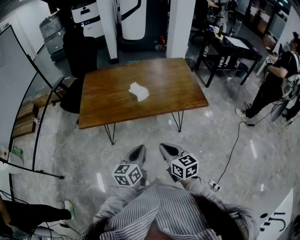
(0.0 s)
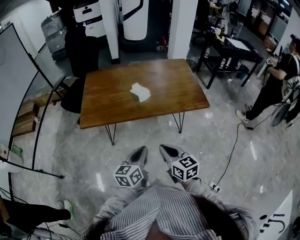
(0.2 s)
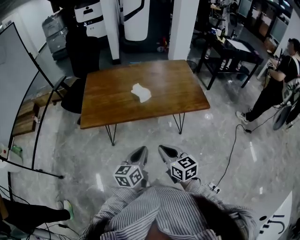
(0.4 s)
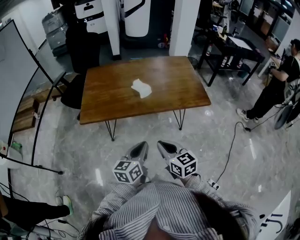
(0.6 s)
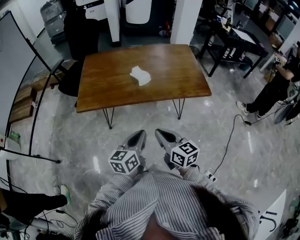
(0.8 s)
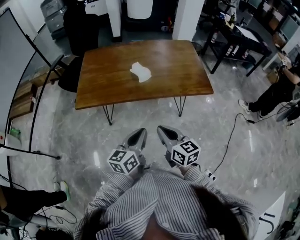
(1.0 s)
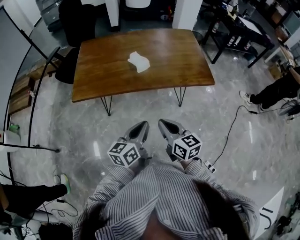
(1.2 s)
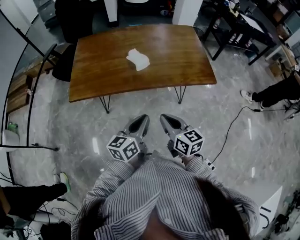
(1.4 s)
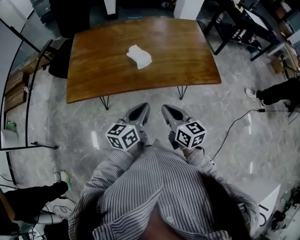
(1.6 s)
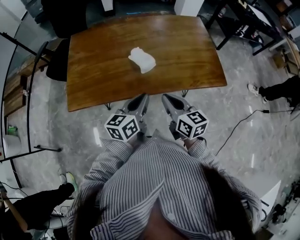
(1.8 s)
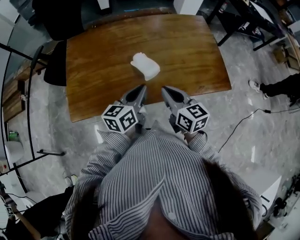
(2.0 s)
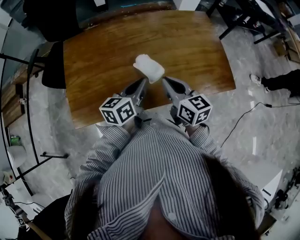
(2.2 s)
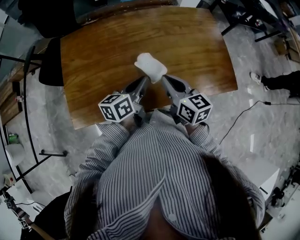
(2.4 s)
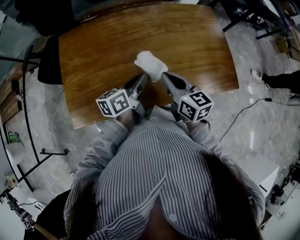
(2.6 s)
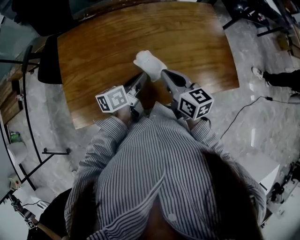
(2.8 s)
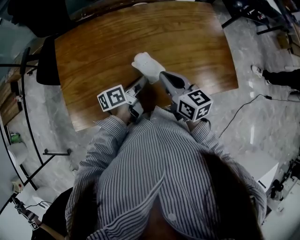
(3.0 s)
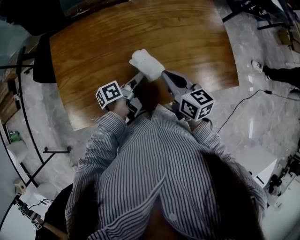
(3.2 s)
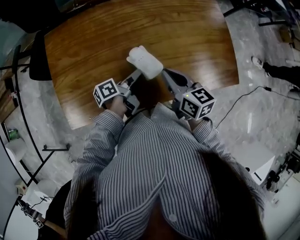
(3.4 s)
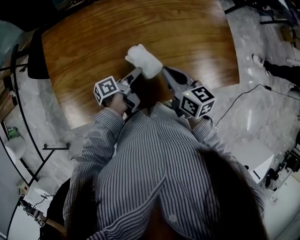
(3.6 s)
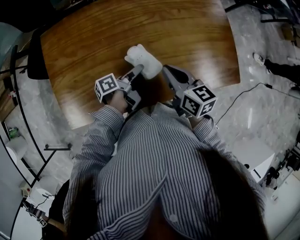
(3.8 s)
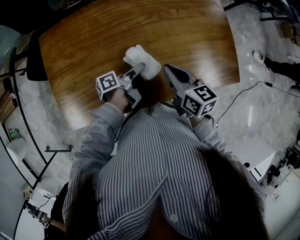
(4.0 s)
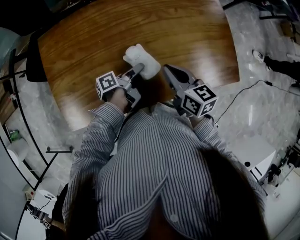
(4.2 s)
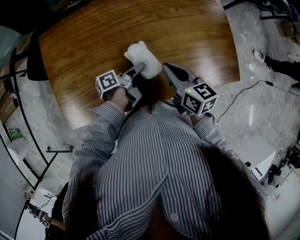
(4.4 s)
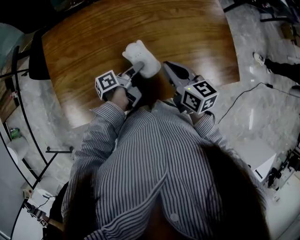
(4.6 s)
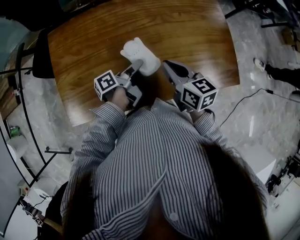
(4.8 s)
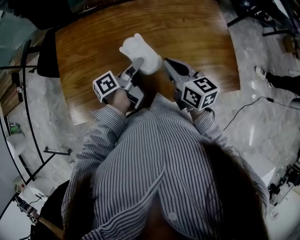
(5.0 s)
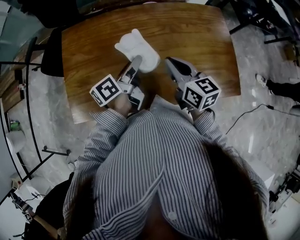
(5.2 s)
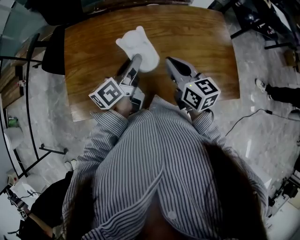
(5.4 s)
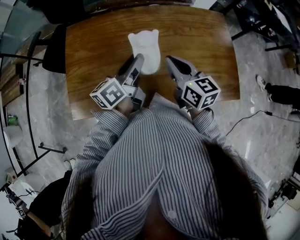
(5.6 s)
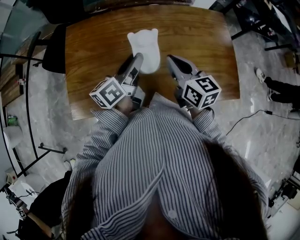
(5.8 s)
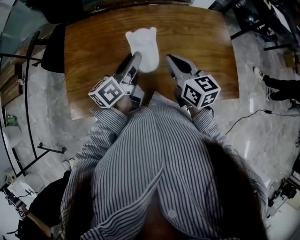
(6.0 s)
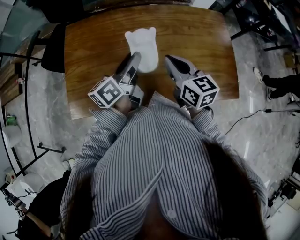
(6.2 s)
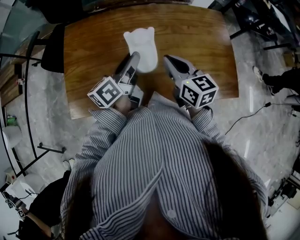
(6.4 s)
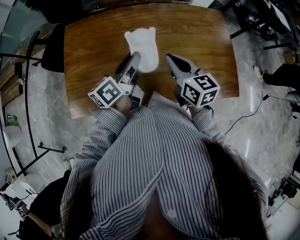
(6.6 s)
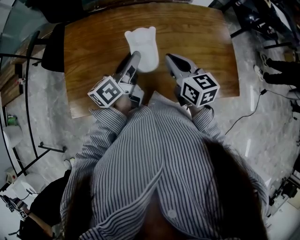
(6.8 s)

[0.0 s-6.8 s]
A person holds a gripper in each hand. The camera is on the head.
0.0 to 1.4 s: The grippers both shift forward by about 5 cm.
1.4 to 2.8 s: The two grippers go some 35 cm forward. The left gripper turns by about 30 degrees.
2.8 to 4.0 s: The left gripper goes some 10 cm downward, swivels some 40 degrees, and opens its fingers; the right gripper shifts by roughly 5 cm.
4.0 to 5.4 s: The left gripper goes some 20 cm upward, and turns by approximately 50 degrees. The right gripper heads upward, covering some 10 cm.
5.4 to 6.8 s: The two grippers keep their place.

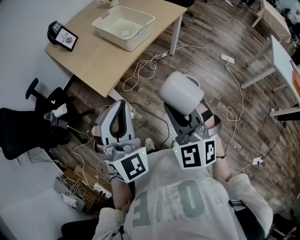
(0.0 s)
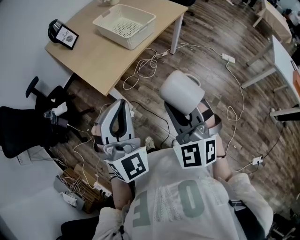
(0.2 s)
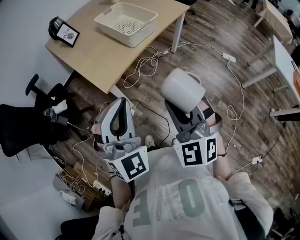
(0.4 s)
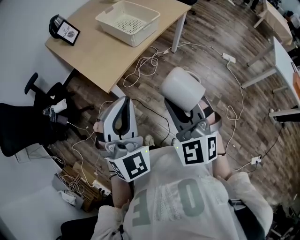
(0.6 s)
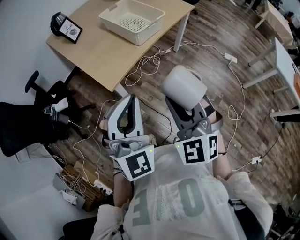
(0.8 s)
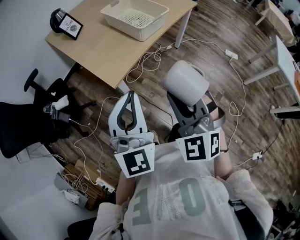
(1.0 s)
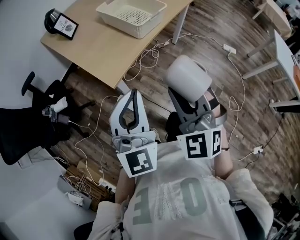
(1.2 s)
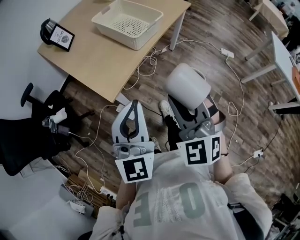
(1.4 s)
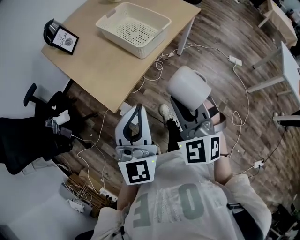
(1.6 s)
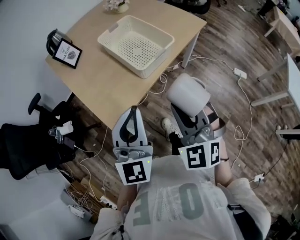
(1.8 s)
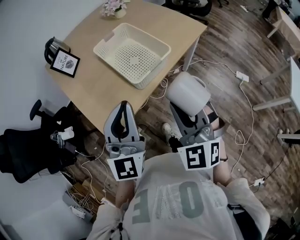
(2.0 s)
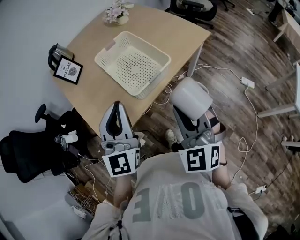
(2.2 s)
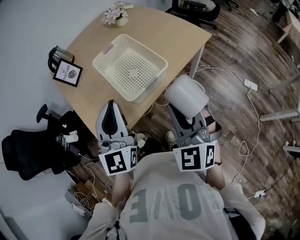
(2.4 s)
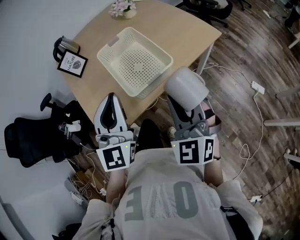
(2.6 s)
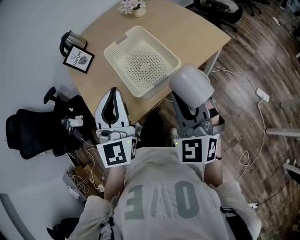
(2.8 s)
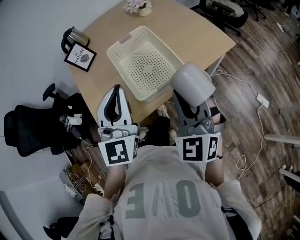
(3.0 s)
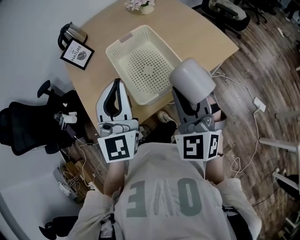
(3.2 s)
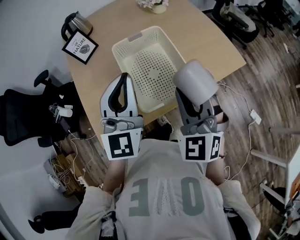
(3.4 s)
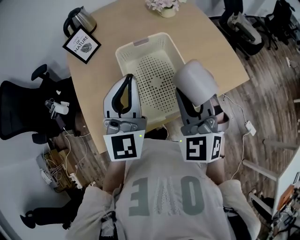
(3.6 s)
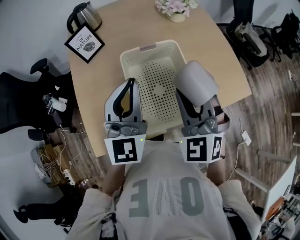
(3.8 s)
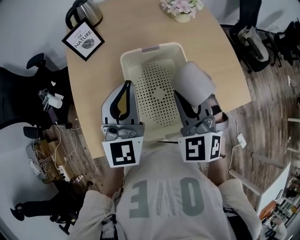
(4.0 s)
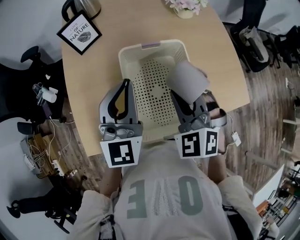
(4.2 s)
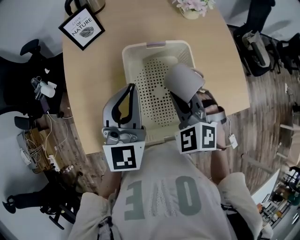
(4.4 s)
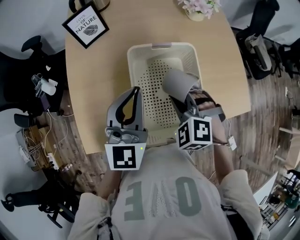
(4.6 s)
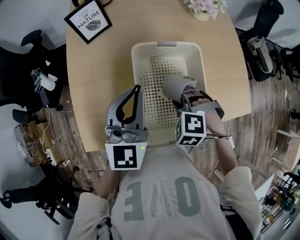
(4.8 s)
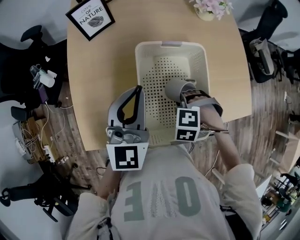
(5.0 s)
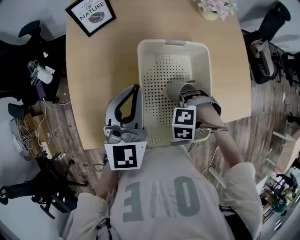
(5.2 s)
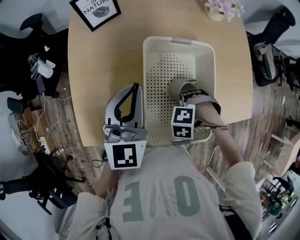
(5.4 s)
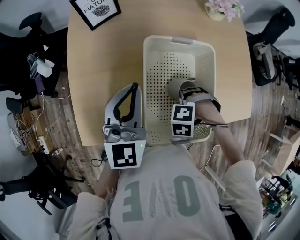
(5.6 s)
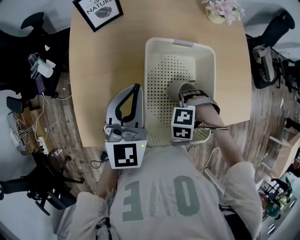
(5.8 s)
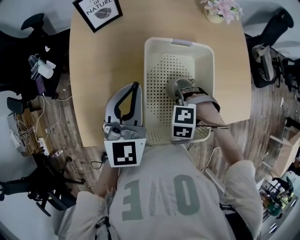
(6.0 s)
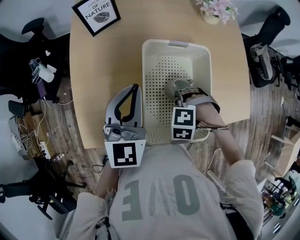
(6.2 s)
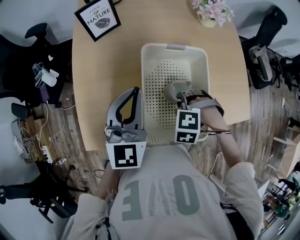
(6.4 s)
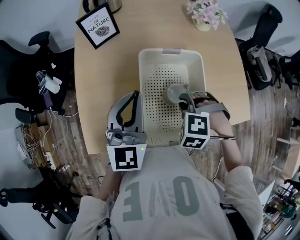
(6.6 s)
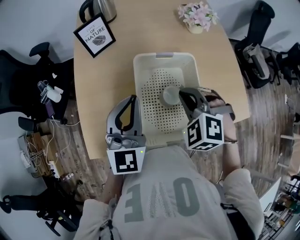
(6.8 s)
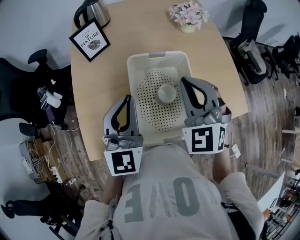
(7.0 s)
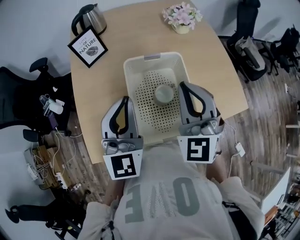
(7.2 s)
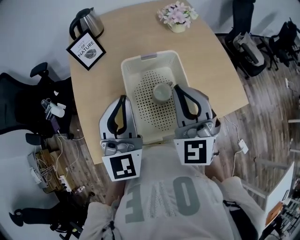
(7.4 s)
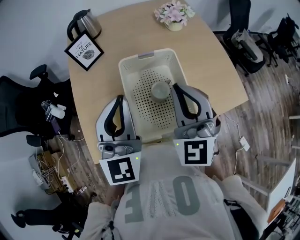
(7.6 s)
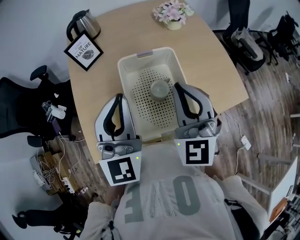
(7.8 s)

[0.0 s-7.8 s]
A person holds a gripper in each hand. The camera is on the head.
0.0 to 1.6 s: The two grippers go some 15 cm forward. The left gripper swivels approximately 30 degrees.
1.6 to 3.2 s: Both grippers move forward, some 30 cm. The left gripper rotates some 20 degrees.
3.2 to 4.6 s: The two grippers go about 25 cm forward and downward. The left gripper changes its angle by roughly 20 degrees; the right gripper tilts its fingers some 40 degrees downward.
4.6 to 6.2 s: The right gripper goes roughly 10 cm downward, and turns by some 40 degrees, while the left gripper ends up approximately 5 cm from where it was.
6.2 to 7.8 s: The right gripper travels upward by some 30 cm, angles its fingers upward, by some 70 degrees, and closes up. Meanwhile the left gripper goes approximately 10 cm upward.

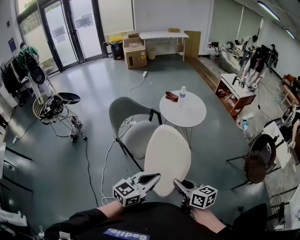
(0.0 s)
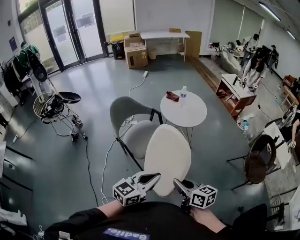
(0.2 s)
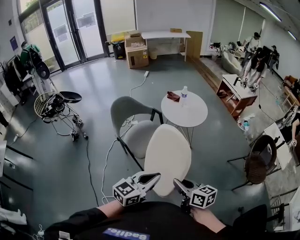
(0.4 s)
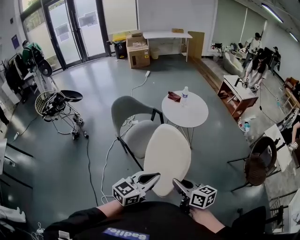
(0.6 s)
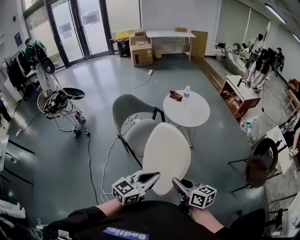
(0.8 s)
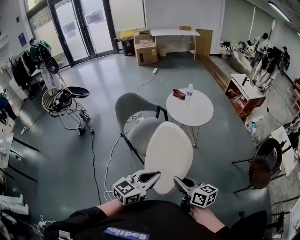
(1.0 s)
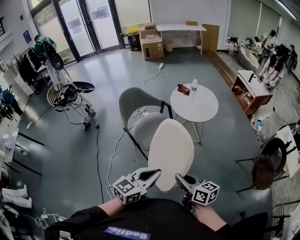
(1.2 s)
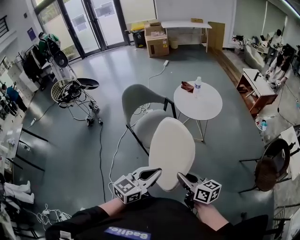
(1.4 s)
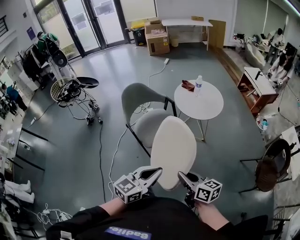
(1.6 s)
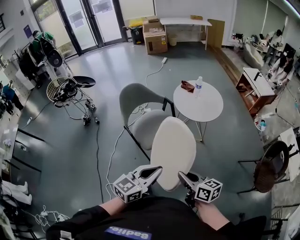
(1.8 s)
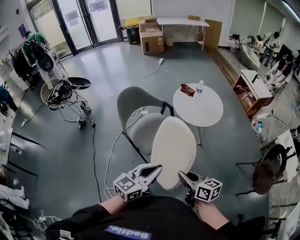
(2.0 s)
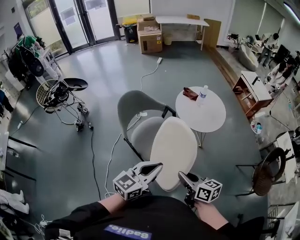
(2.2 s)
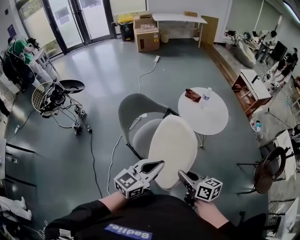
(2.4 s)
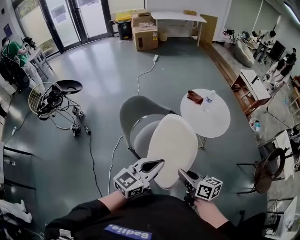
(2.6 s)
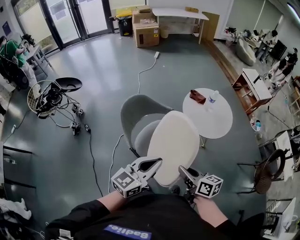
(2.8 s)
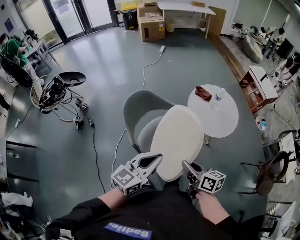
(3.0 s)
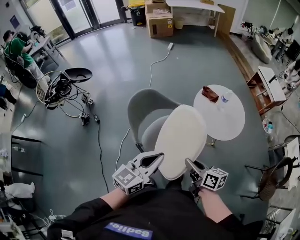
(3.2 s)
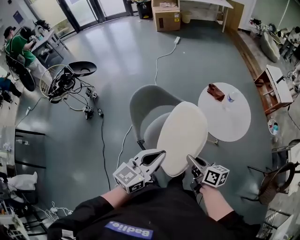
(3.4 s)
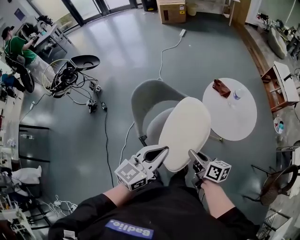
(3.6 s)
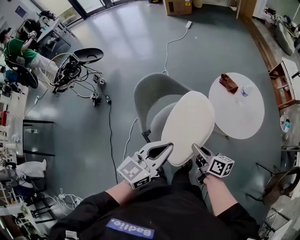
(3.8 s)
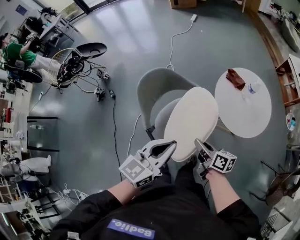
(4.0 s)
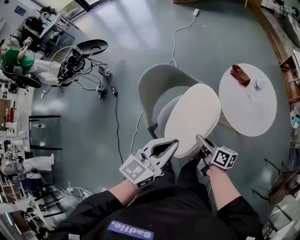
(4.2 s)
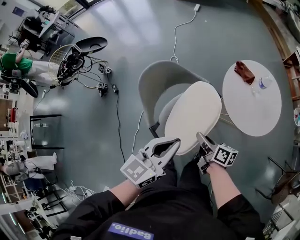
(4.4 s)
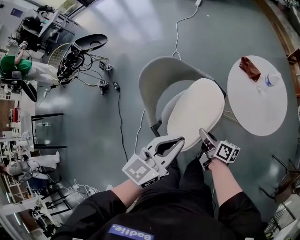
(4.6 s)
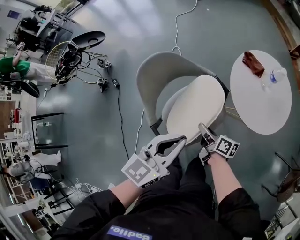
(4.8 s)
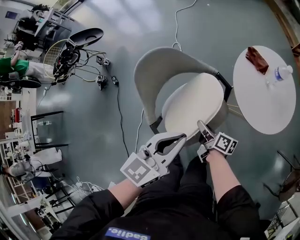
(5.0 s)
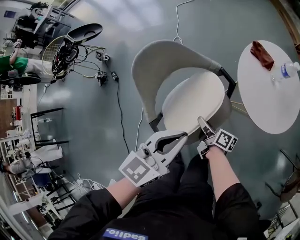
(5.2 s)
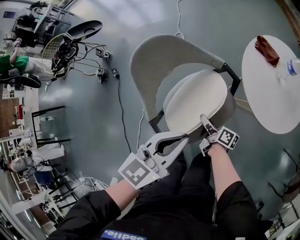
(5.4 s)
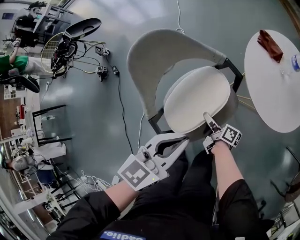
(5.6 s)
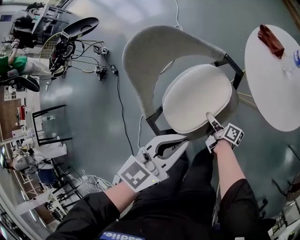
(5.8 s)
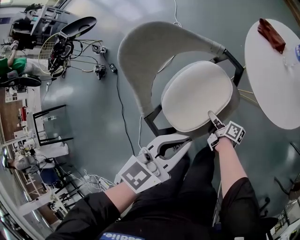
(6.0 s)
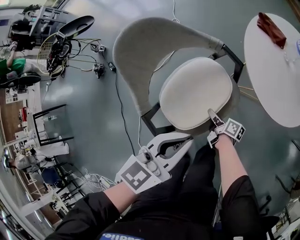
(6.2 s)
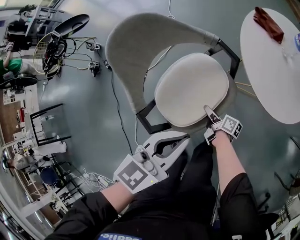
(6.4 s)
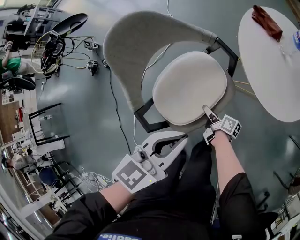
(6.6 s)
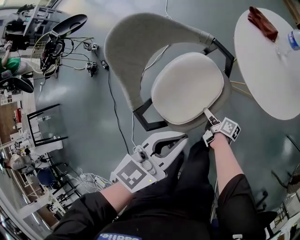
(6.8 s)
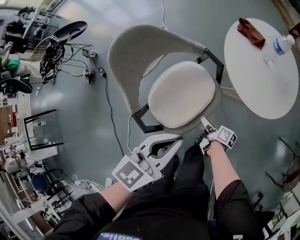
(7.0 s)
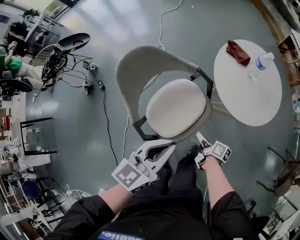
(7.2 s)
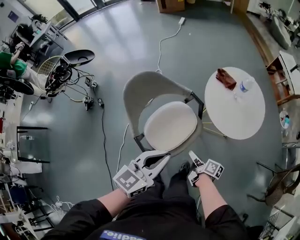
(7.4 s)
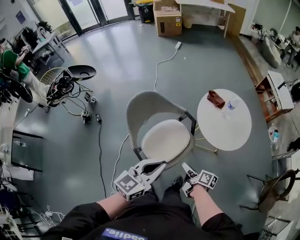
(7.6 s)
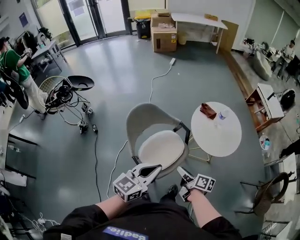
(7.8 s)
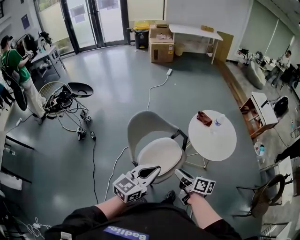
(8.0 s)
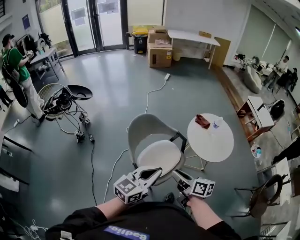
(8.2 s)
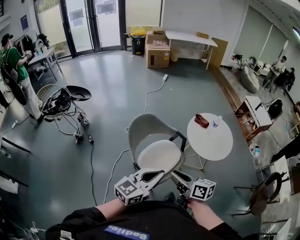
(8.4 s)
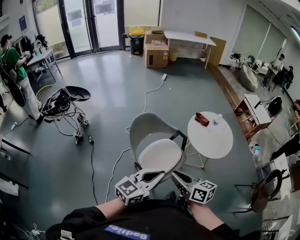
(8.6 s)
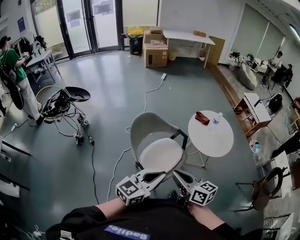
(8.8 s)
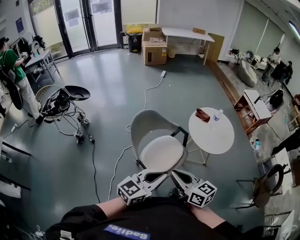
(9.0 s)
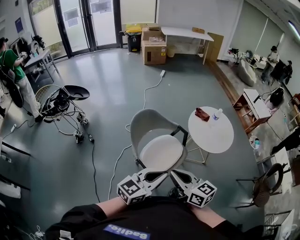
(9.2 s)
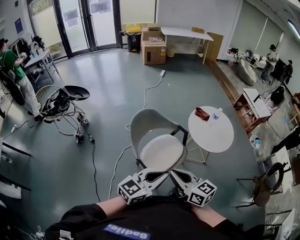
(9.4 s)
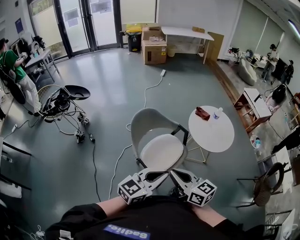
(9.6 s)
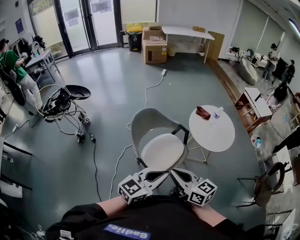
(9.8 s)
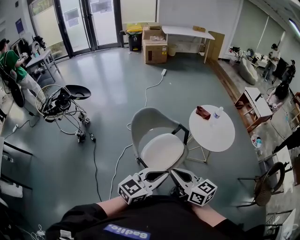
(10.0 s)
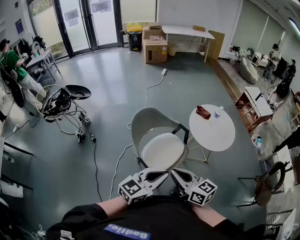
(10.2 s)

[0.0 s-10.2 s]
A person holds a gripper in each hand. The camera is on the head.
0.0 to 1.4 s: The grippers stay close to where they were, moving slightly.
1.4 to 3.0 s: Both grippers travel together forward and to the left, roughly 35 cm.
3.0 to 4.4 s: The right gripper shifts about 20 cm downward and forward, and rotates some 20 degrees; the left gripper moves forward and downward, about 10 cm.
4.4 to 5.8 s: The left gripper heads downward, covering roughly 15 cm. The right gripper heads downward, covering about 25 cm.
5.8 to 7.2 s: The left gripper goes approximately 5 cm upward. The right gripper goes some 15 cm backward, to the right and upward, and opens up.
7.2 to 8.8 s: The right gripper heads upward, covering some 40 cm, rolls counterclockwise, seen from behind, by about 50 degrees, and closes. The left gripper moves upward, backward and to the left, about 20 cm.
8.8 to 10.2 s: There are only small adjustments of the grippers.
